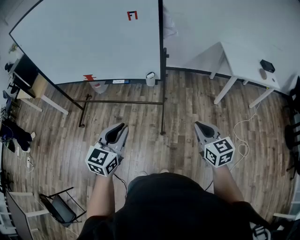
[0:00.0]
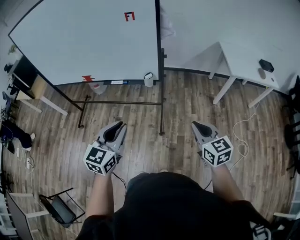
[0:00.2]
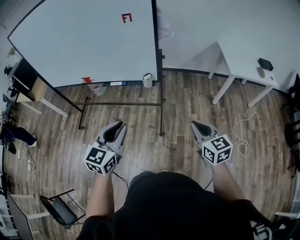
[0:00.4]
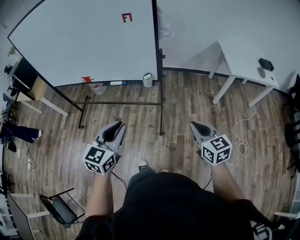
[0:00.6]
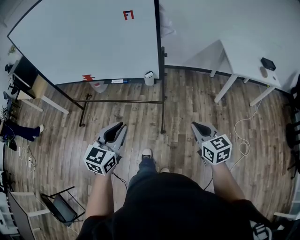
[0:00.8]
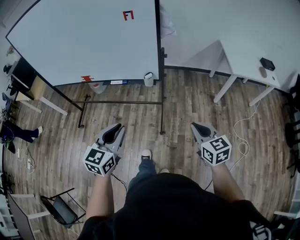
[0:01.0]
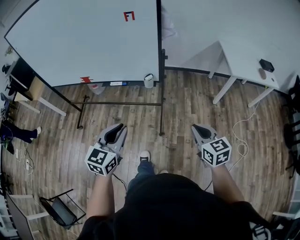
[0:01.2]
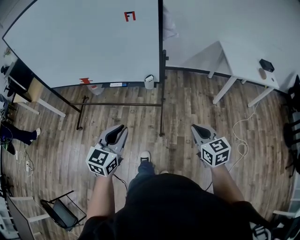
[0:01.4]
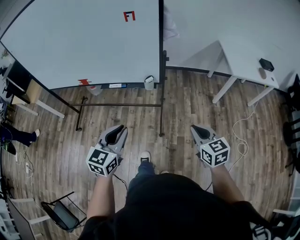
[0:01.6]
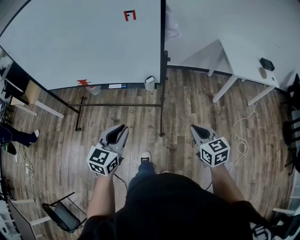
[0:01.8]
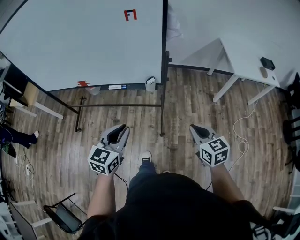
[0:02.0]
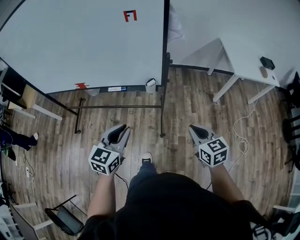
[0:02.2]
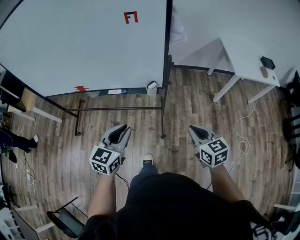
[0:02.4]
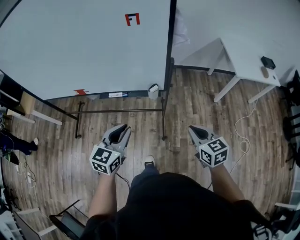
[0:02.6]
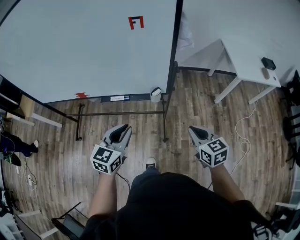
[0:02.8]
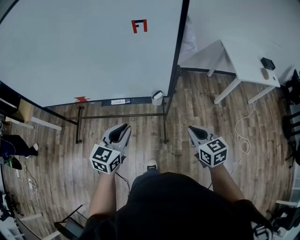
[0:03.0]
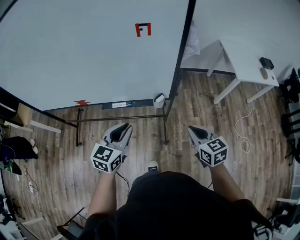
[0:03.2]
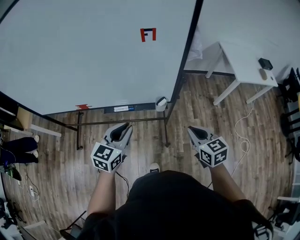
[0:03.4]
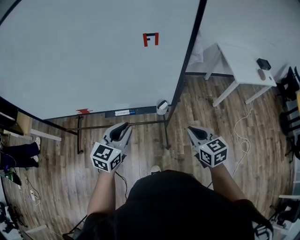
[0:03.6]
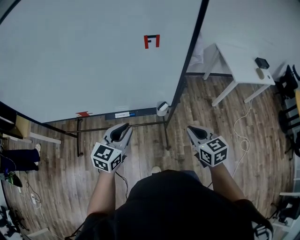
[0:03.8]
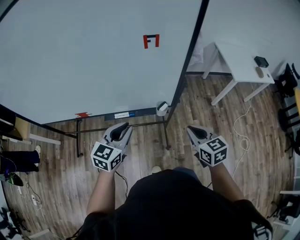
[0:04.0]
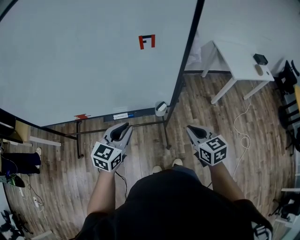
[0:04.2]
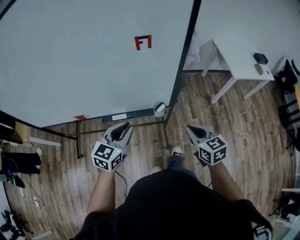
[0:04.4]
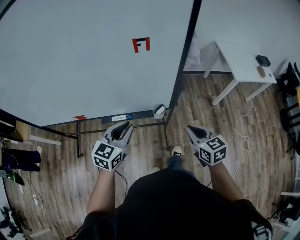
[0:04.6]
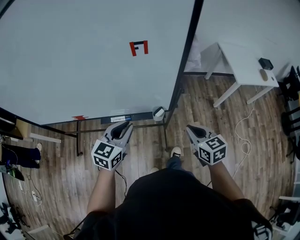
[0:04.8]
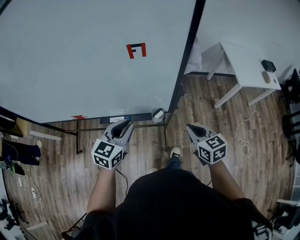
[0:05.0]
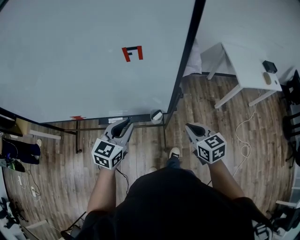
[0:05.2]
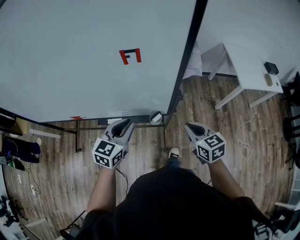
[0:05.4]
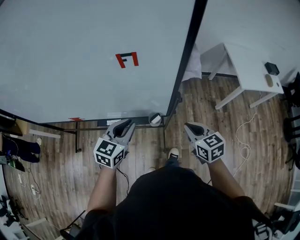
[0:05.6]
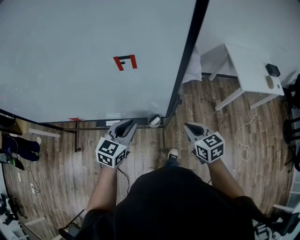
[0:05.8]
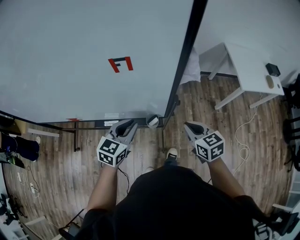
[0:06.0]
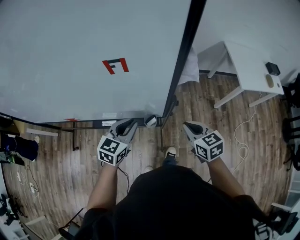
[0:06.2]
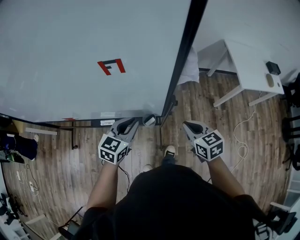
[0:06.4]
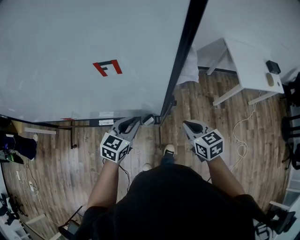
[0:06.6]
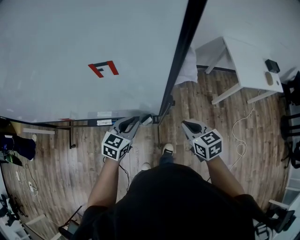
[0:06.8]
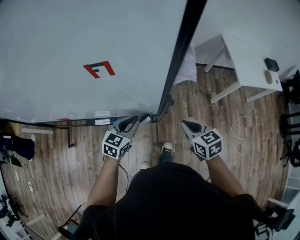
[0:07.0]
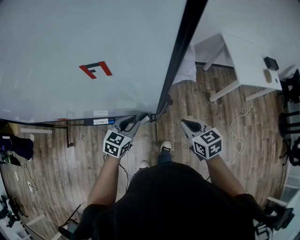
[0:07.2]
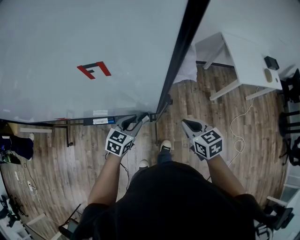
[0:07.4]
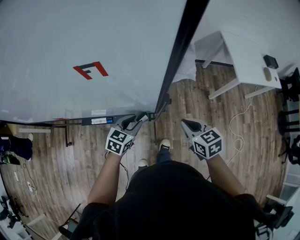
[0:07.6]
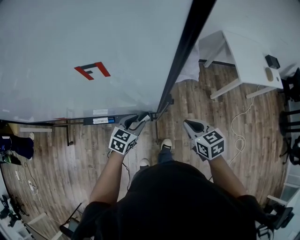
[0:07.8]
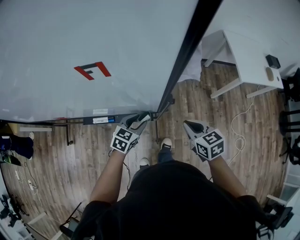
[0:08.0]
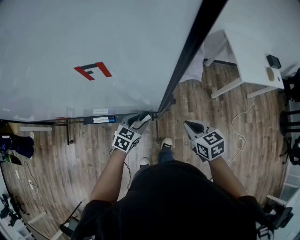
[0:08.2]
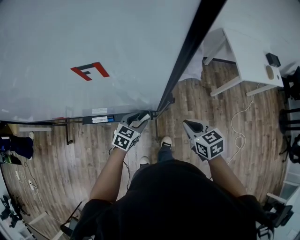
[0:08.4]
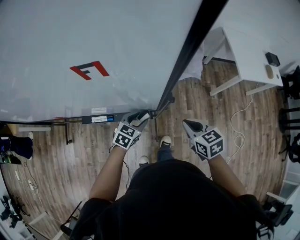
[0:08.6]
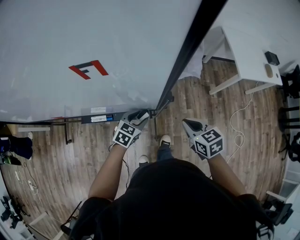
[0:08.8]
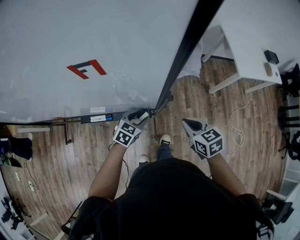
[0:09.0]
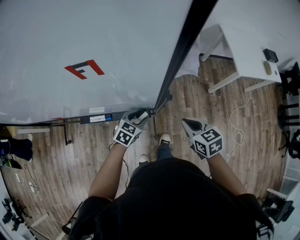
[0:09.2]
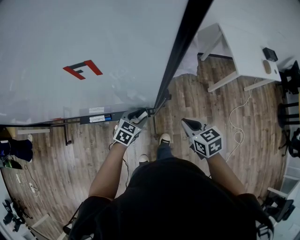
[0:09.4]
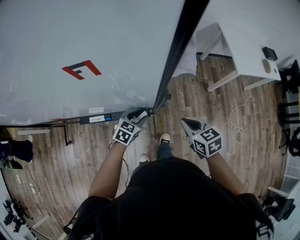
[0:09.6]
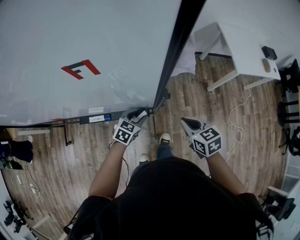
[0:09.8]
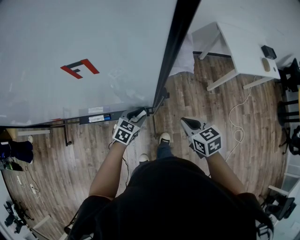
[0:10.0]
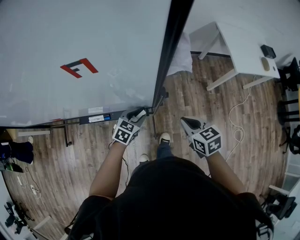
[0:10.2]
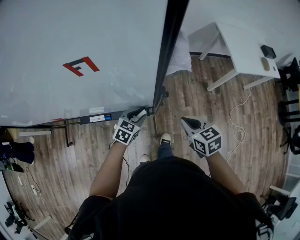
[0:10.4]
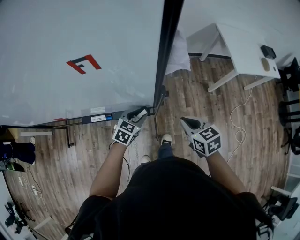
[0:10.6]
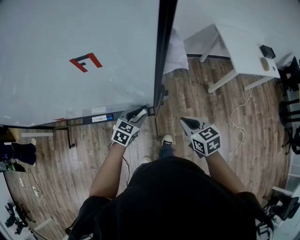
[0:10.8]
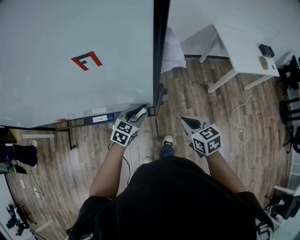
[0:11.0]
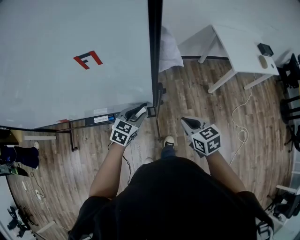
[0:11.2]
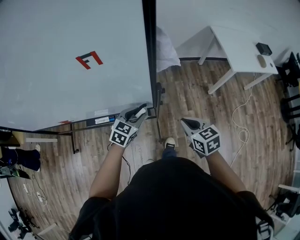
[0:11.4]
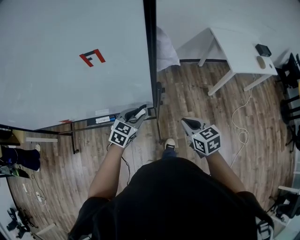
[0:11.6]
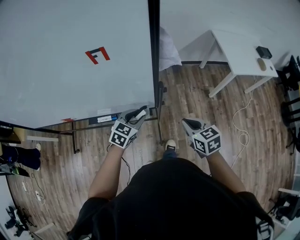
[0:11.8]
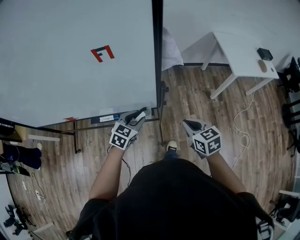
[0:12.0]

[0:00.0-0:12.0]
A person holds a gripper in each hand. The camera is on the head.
0.0 to 1.6 s: The left gripper heads forward, covering approximately 5 cm. Meanwhile the right gripper shifts by some 5 cm.
1.6 to 3.0 s: The grippers both shift forward and to the left by approximately 20 cm.
3.0 to 4.4 s: Both grippers move forward, some 10 cm.
4.4 to 6.0 s: The two grippers go roughly 15 cm forward and to the right.
6.0 to 7.6 s: The right gripper shifts by about 5 cm. Meanwhile the left gripper shifts approximately 15 cm downward and to the right.
7.6 to 9.0 s: The left gripper shifts some 5 cm downward.
9.0 to 10.4 s: The two grippers keep their place.
10.4 to 12.0 s: The right gripper travels backward by about 5 cm. The left gripper travels upward and backward by roughly 10 cm.

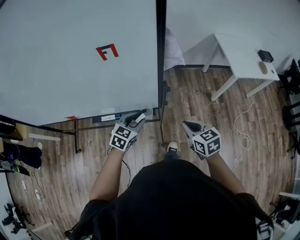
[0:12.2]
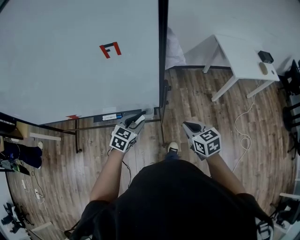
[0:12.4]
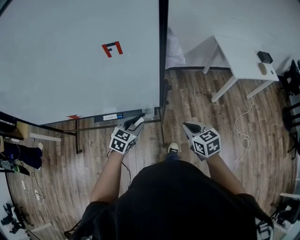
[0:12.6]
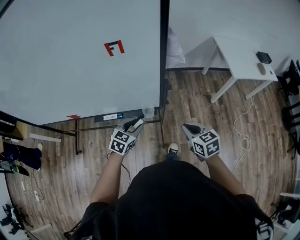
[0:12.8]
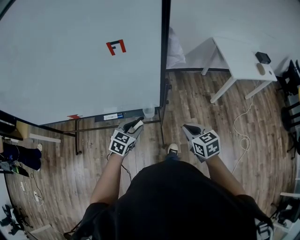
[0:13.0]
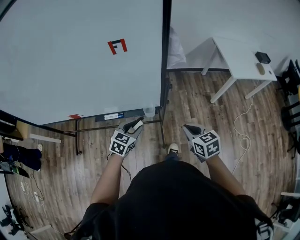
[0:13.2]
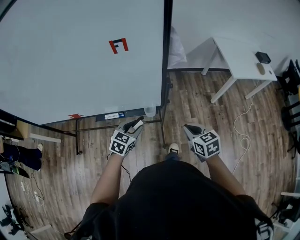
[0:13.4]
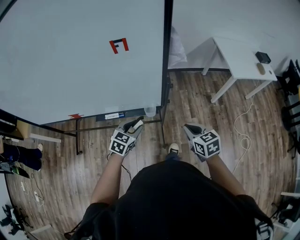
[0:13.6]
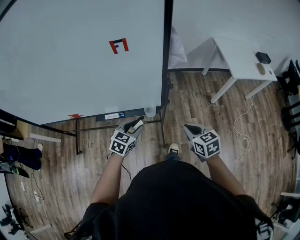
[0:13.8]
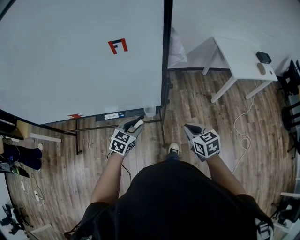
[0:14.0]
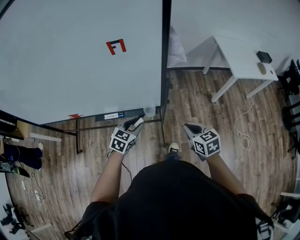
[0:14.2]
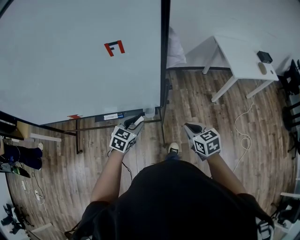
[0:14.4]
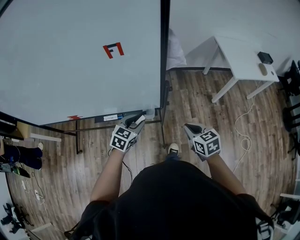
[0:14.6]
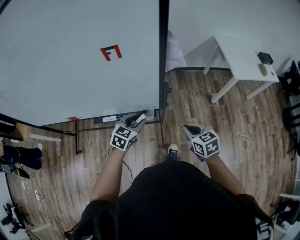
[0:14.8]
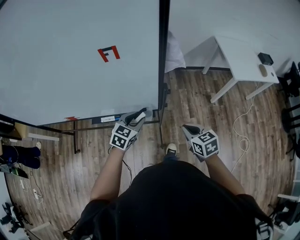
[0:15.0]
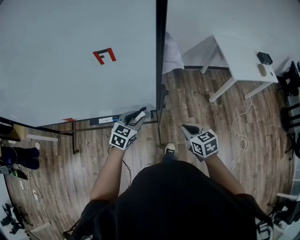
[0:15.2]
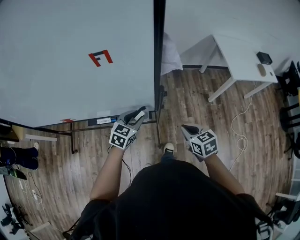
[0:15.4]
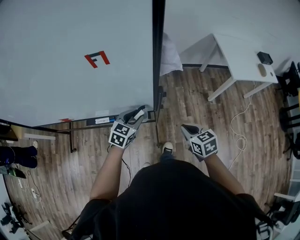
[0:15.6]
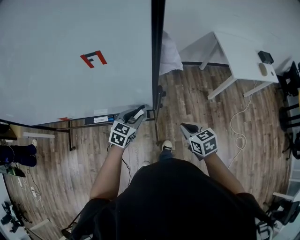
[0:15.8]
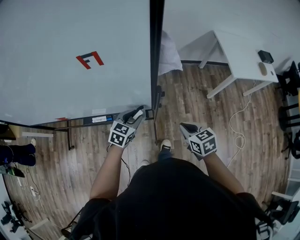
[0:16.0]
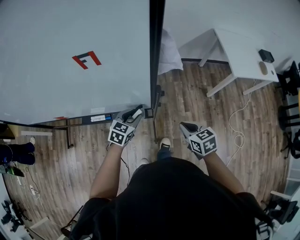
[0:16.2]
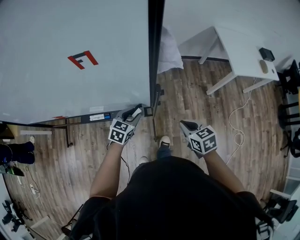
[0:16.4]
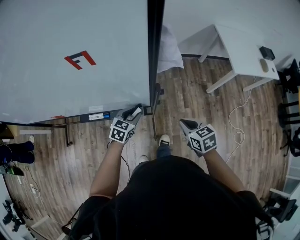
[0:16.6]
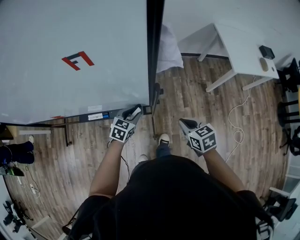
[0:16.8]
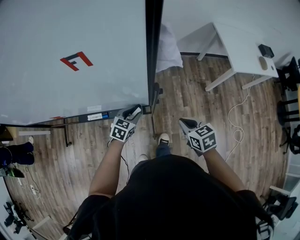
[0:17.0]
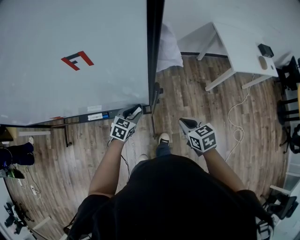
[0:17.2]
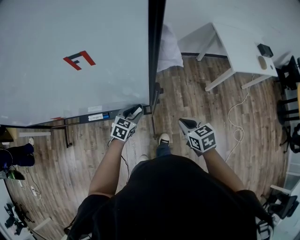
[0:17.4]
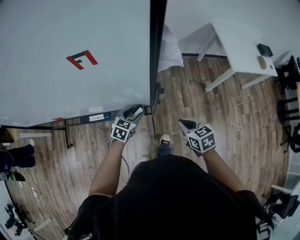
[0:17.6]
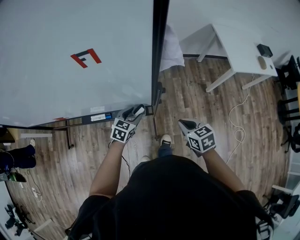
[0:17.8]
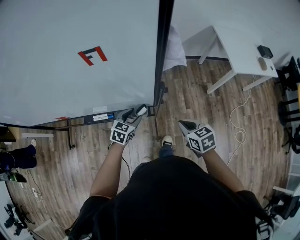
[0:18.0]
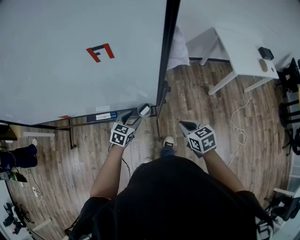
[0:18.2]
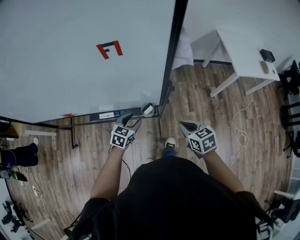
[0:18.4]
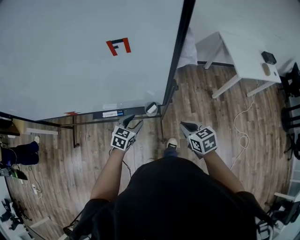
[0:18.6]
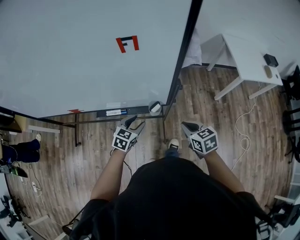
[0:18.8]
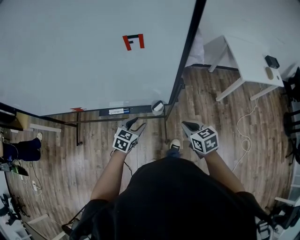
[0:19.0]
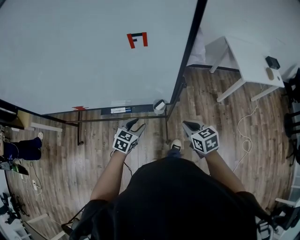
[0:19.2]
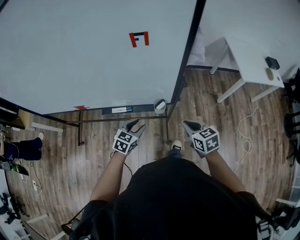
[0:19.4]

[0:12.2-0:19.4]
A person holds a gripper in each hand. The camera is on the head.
12.2 to 13.6 s: The left gripper is displaced backward by approximately 5 cm.
13.6 to 15.0 s: The left gripper shifts roughly 5 cm forward.
15.0 to 16.6 s: The right gripper ends up approximately 5 cm from where it was. The left gripper shifts some 10 cm downward.
16.6 to 18.0 s: The grippers make only small movements.
18.0 to 19.4 s: The right gripper goes some 5 cm to the left. Meanwhile the left gripper goes some 15 cm backward and to the left.

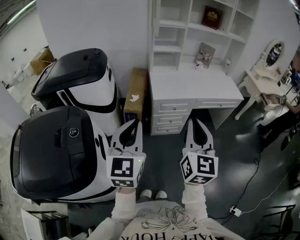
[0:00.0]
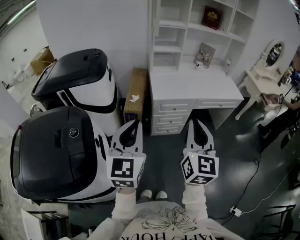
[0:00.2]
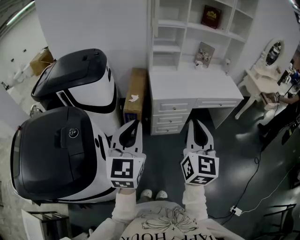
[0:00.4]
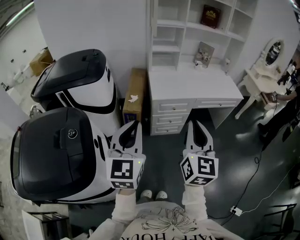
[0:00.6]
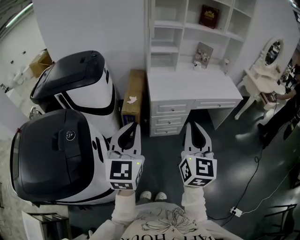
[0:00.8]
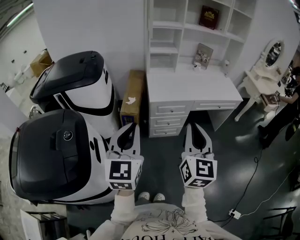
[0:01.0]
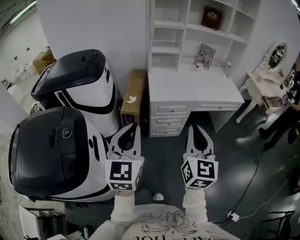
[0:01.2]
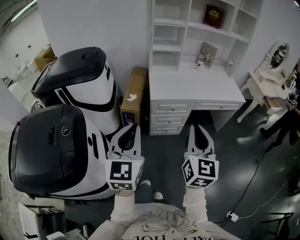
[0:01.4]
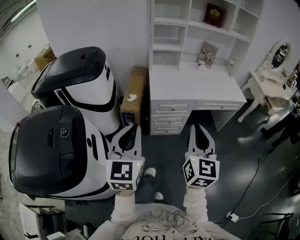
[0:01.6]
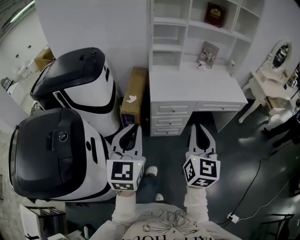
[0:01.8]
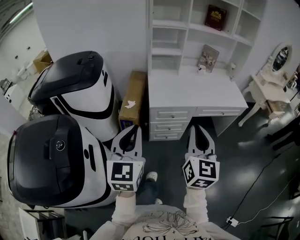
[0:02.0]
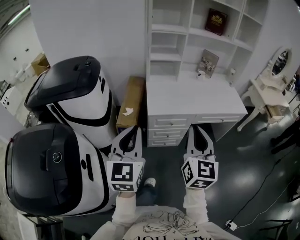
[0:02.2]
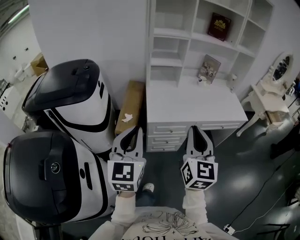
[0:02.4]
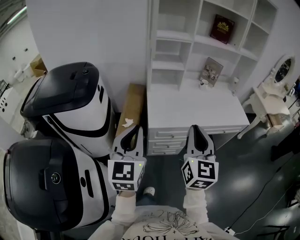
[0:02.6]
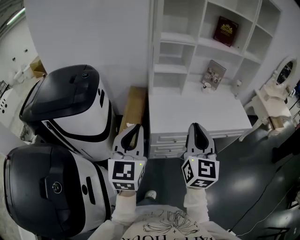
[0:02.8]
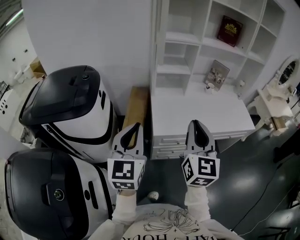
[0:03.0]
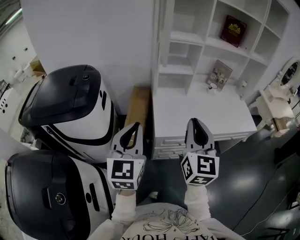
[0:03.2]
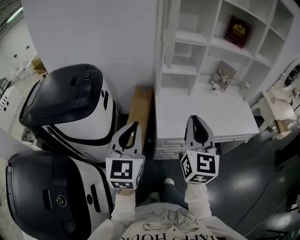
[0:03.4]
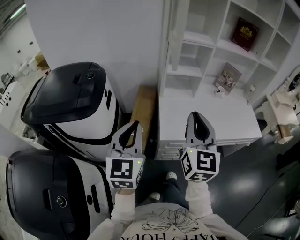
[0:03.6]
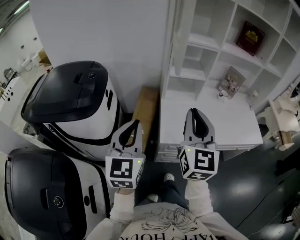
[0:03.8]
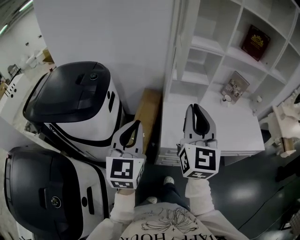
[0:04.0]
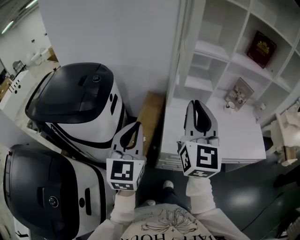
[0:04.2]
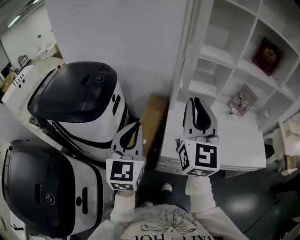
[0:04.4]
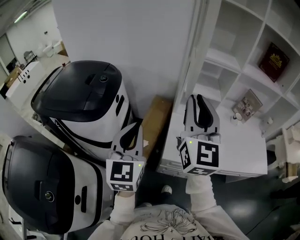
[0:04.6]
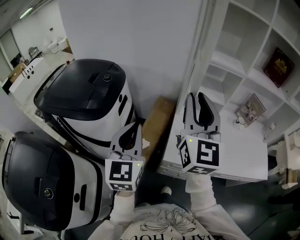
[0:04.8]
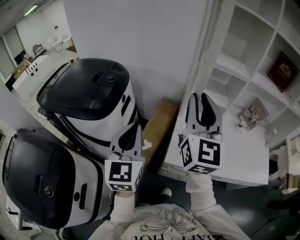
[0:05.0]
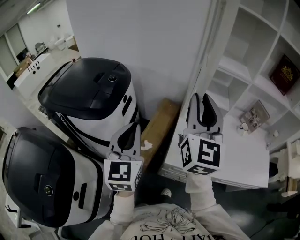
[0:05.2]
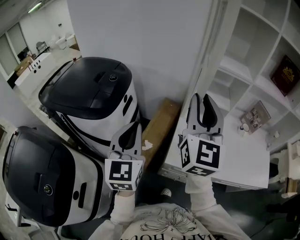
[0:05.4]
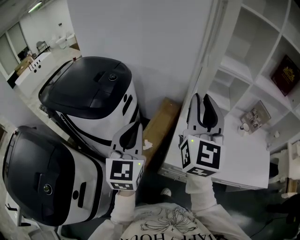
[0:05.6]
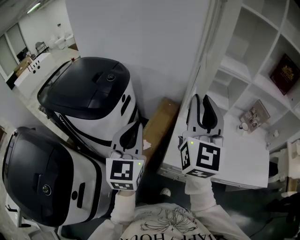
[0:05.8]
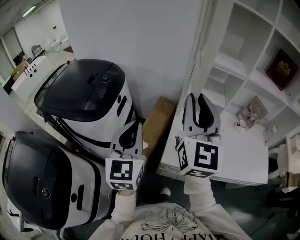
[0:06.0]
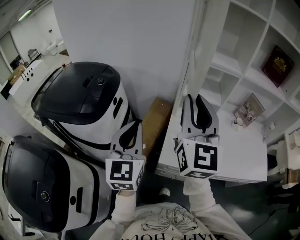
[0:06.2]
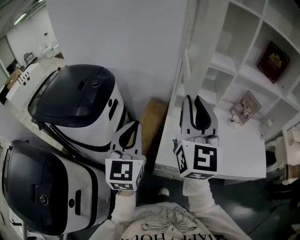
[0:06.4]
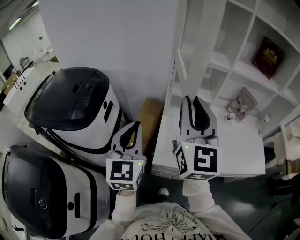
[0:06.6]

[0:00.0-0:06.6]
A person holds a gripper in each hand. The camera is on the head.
0.0 to 1.6 s: The right gripper travels to the right by about 5 cm. The left gripper ends up approximately 5 cm from where it was.
1.6 to 3.2 s: Both grippers travel together forward, some 30 cm.
3.2 to 5.0 s: The right gripper moves forward and upward, roughly 25 cm, and turns by about 20 degrees. The left gripper travels forward by approximately 10 cm, and rotates about 20 degrees.
5.0 to 6.6 s: The grippers both shift to the right by some 10 cm.
